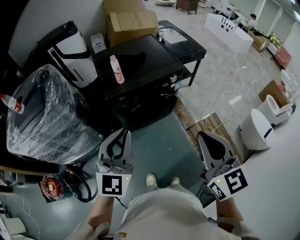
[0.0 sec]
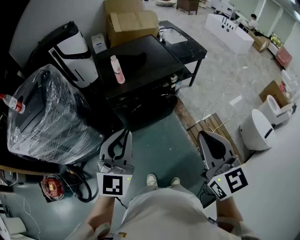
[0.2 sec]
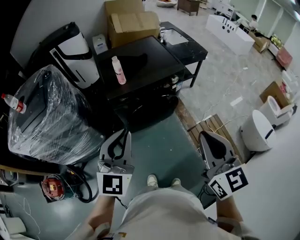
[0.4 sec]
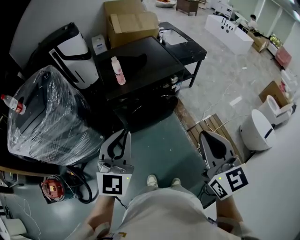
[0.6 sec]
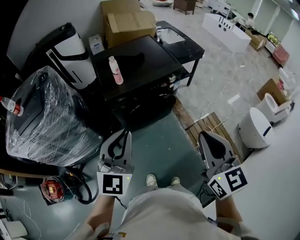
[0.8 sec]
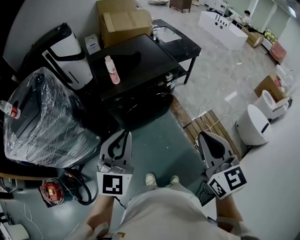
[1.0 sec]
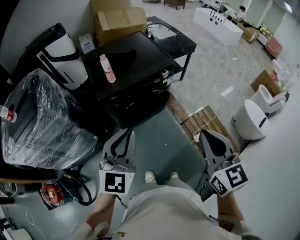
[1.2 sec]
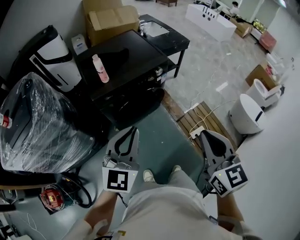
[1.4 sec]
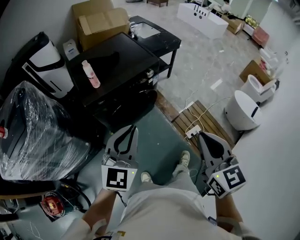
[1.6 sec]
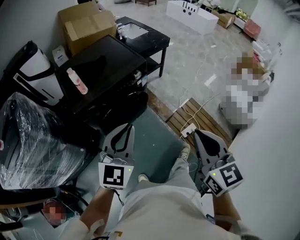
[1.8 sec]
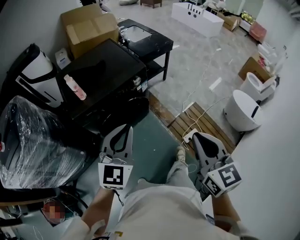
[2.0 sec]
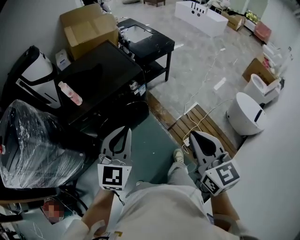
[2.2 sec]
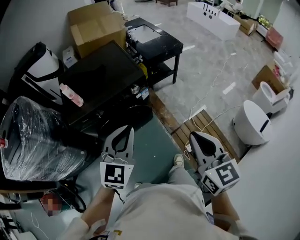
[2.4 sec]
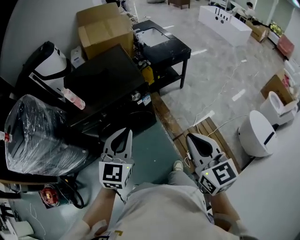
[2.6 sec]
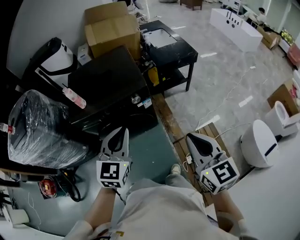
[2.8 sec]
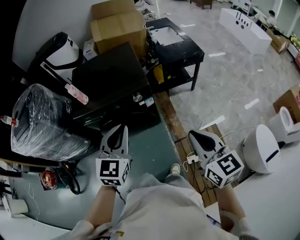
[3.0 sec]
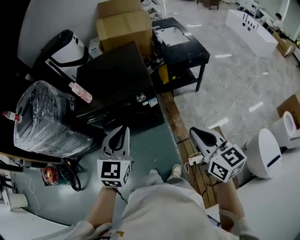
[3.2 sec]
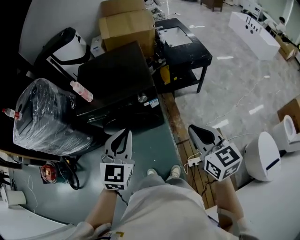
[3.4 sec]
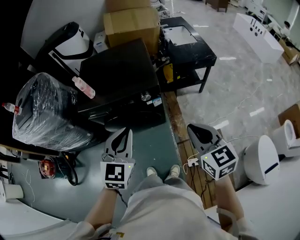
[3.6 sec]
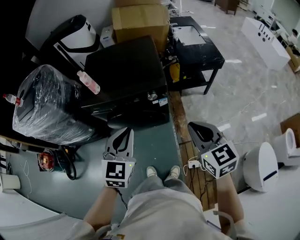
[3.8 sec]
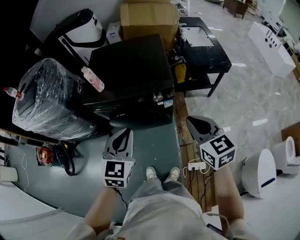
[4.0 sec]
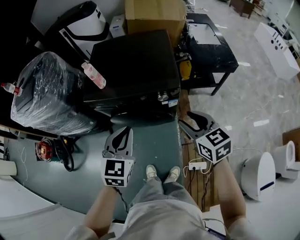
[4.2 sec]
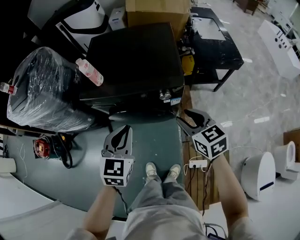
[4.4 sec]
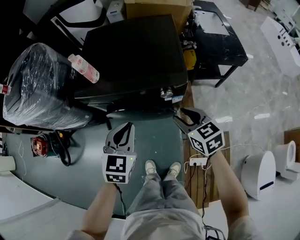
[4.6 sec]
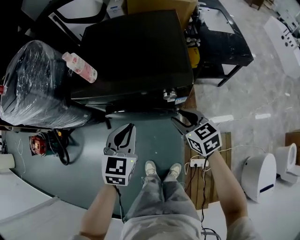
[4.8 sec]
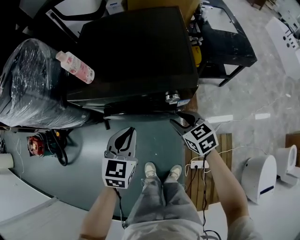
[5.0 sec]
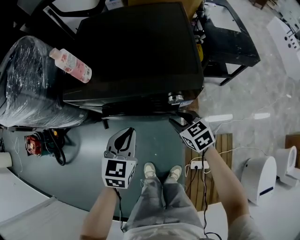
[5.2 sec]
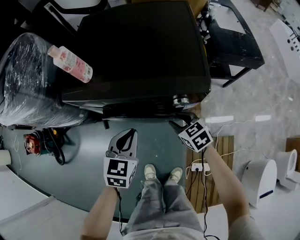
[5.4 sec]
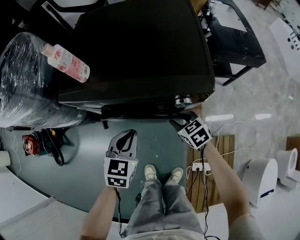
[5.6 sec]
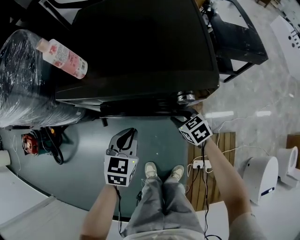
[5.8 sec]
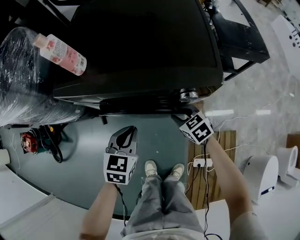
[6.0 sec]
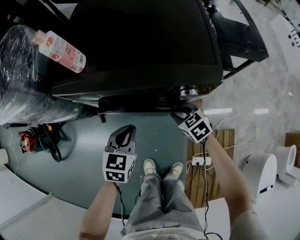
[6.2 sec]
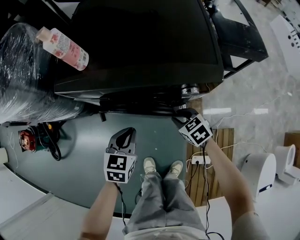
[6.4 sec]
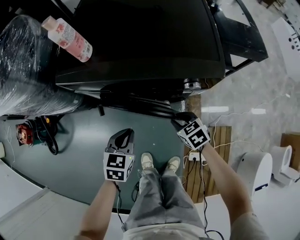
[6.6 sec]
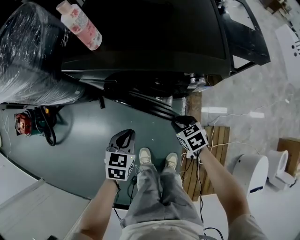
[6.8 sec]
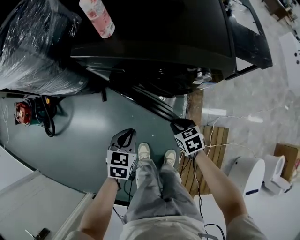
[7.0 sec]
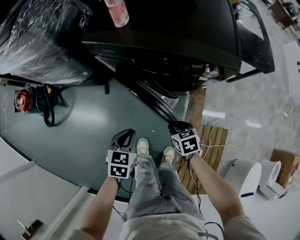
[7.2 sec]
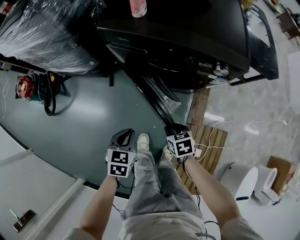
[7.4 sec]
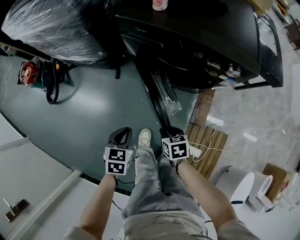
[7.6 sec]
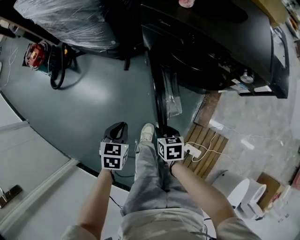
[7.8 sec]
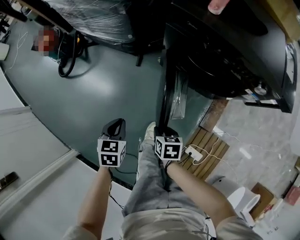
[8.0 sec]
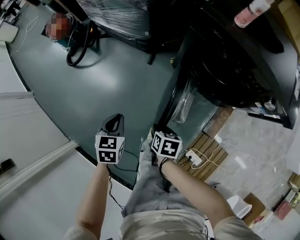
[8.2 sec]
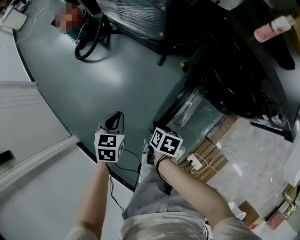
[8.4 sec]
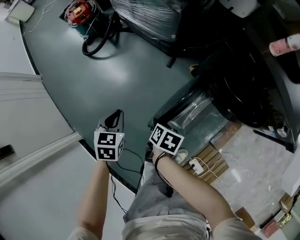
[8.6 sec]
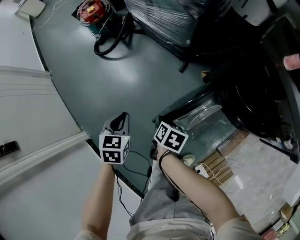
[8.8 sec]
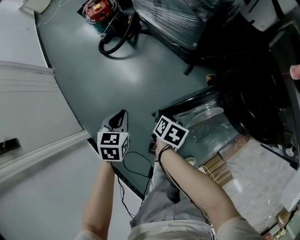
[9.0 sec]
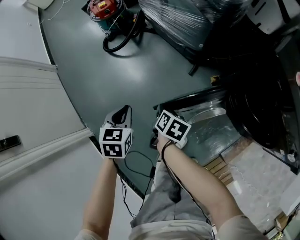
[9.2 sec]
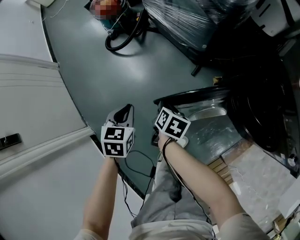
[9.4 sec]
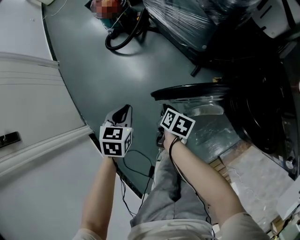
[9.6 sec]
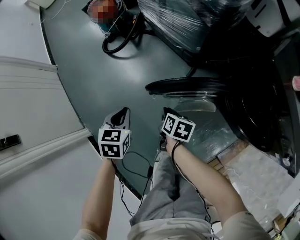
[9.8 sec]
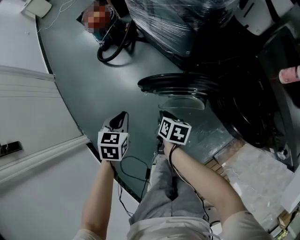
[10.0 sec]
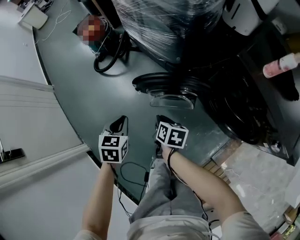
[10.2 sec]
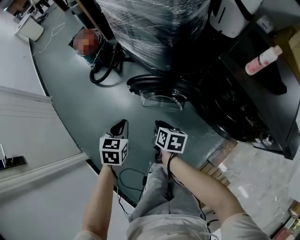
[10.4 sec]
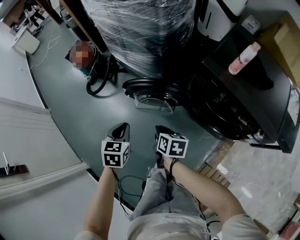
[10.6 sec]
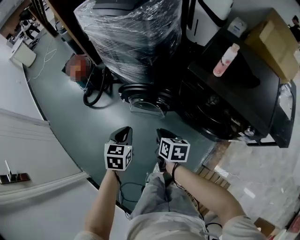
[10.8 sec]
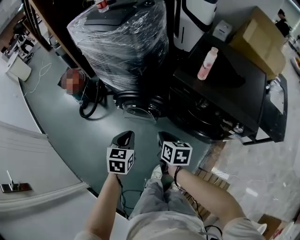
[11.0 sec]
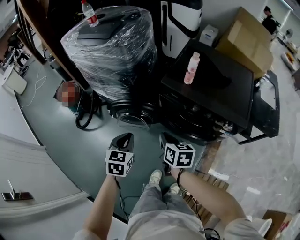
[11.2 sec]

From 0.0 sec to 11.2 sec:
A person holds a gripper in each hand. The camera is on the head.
From 0.0 sec to 1.6 sec: Both grippers move to the right, approximately 5 cm.
From 1.6 sec to 3.2 sec: The left gripper moves some 30 cm, and changes its angle by approximately 30 degrees. The right gripper moves some 40 cm, and swivels about 40 degrees.
From 3.2 sec to 4.8 sec: The left gripper moves downward and forward, about 25 cm, while the right gripper travels forward, downward and to the left by about 40 cm, rotates roughly 30 degrees, and opens.
From 4.8 sec to 6.4 sec: Both grippers move downward, approximately 20 cm. The right gripper rotates about 20 degrees.
From 6.4 sec to 8.0 sec: Both grippers are carried to the left and backward, roughly 40 cm. The left gripper turns by approximately 40 degrees. Meanwhile the right gripper turns by some 20 degrees.
From 8.0 sec to 9.6 sec: The right gripper is displaced forward and to the left by roughly 30 cm; the left gripper moves to the left and forward, about 25 cm, and rotates some 30 degrees.
From 9.6 sec to 11.2 sec: The left gripper moves about 40 cm, and swivels some 30 degrees. The right gripper travels upward by approximately 35 cm, and swivels approximately 30 degrees.

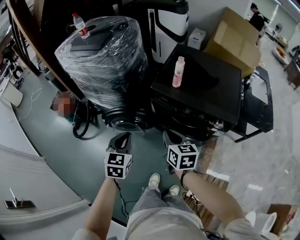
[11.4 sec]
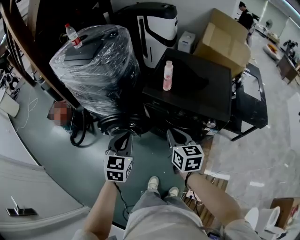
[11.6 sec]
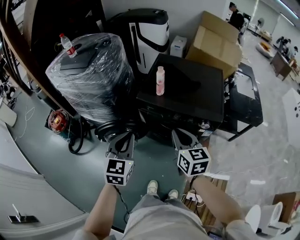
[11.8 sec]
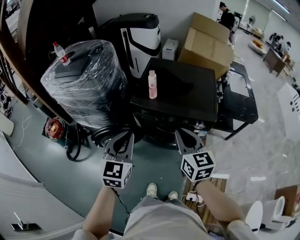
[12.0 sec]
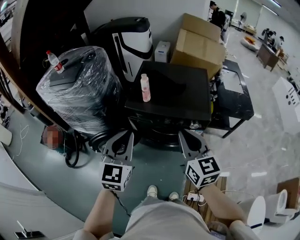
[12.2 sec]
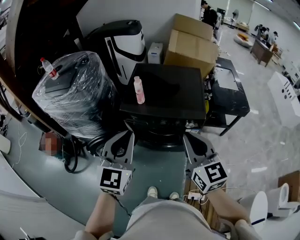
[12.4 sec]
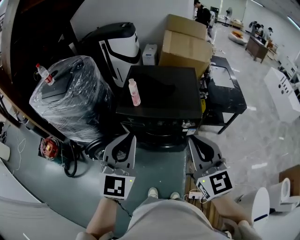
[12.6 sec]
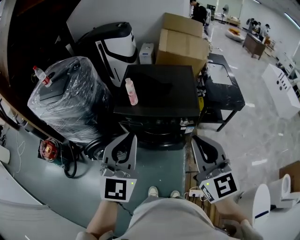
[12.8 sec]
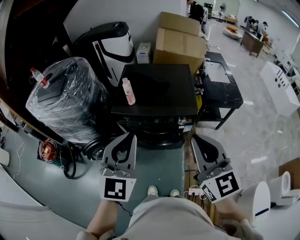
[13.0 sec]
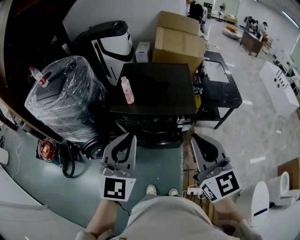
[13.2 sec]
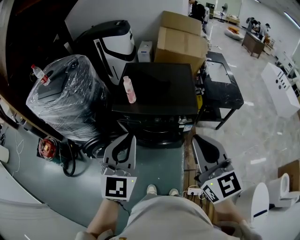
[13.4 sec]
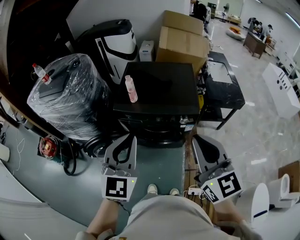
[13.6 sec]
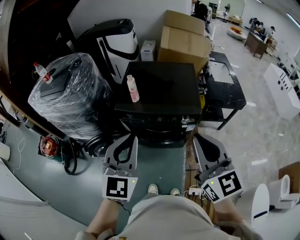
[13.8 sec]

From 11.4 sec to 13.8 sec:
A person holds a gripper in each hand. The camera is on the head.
From 11.4 sec to 12.6 sec: The left gripper is displaced upward and to the right by some 30 cm, and points its fingers approximately 30 degrees further upward. The right gripper moves upward, to the right and backward, roughly 35 cm, and swivels roughly 40 degrees.
From 12.6 sec to 13.8 sec: The grippers make only small movements.

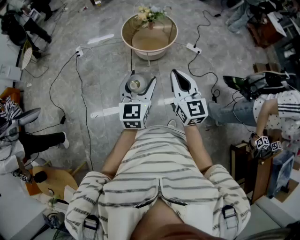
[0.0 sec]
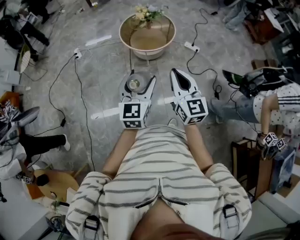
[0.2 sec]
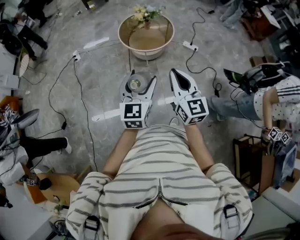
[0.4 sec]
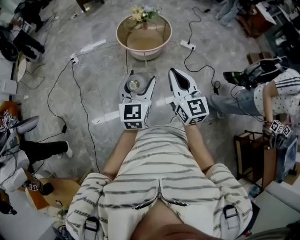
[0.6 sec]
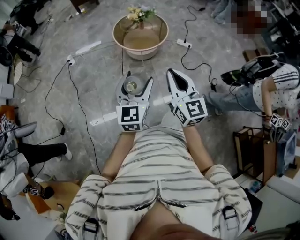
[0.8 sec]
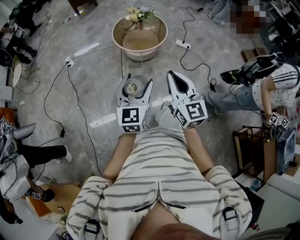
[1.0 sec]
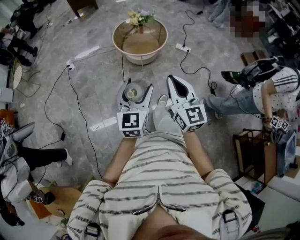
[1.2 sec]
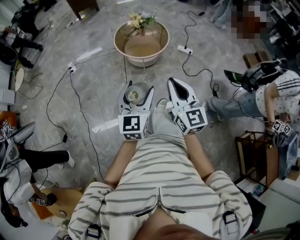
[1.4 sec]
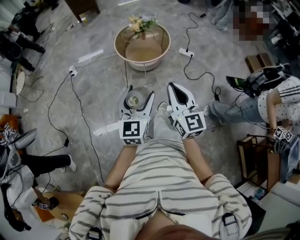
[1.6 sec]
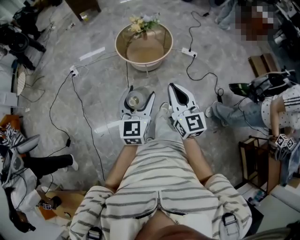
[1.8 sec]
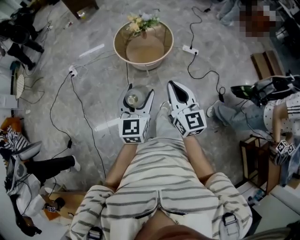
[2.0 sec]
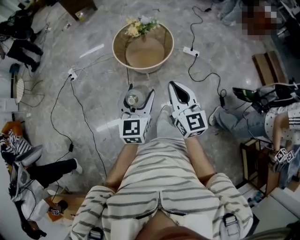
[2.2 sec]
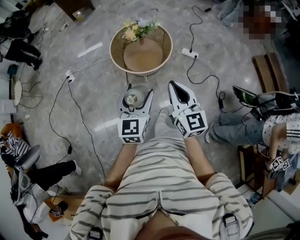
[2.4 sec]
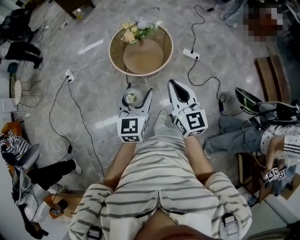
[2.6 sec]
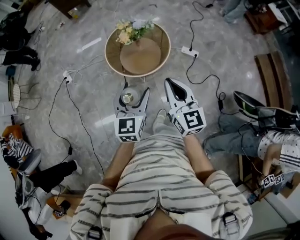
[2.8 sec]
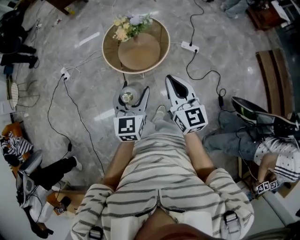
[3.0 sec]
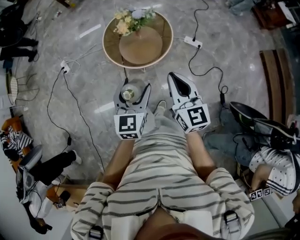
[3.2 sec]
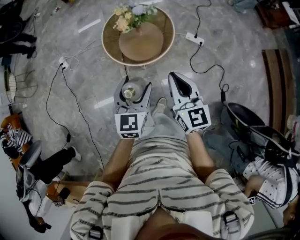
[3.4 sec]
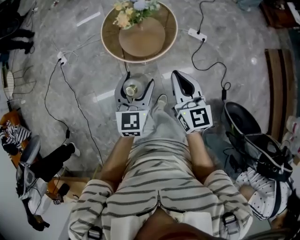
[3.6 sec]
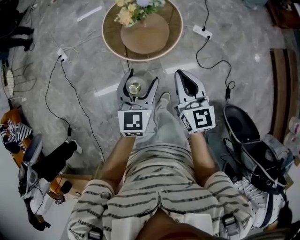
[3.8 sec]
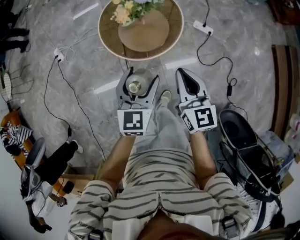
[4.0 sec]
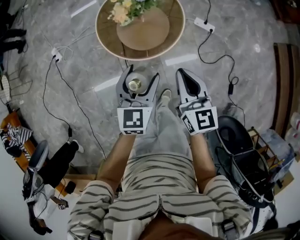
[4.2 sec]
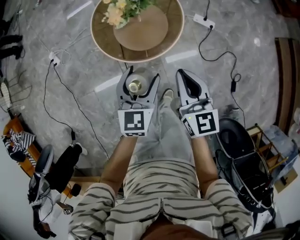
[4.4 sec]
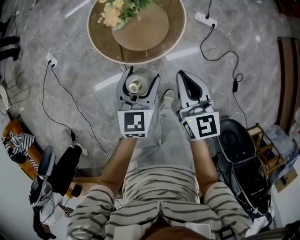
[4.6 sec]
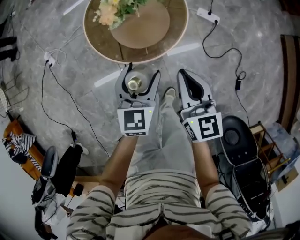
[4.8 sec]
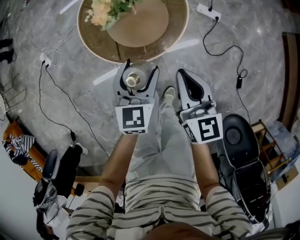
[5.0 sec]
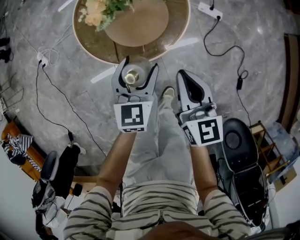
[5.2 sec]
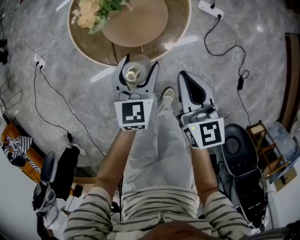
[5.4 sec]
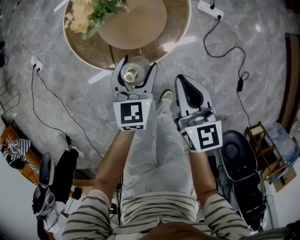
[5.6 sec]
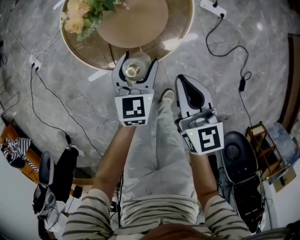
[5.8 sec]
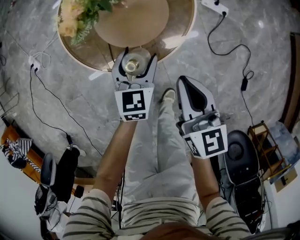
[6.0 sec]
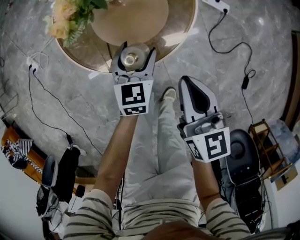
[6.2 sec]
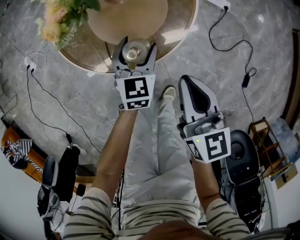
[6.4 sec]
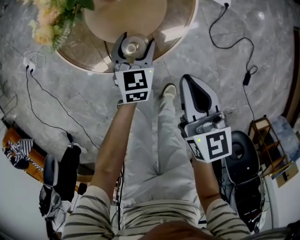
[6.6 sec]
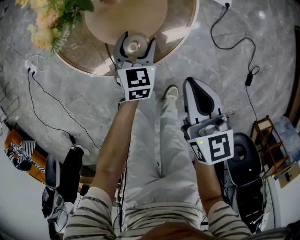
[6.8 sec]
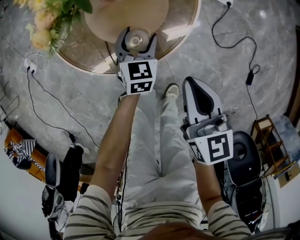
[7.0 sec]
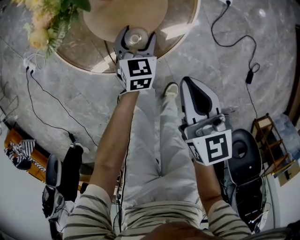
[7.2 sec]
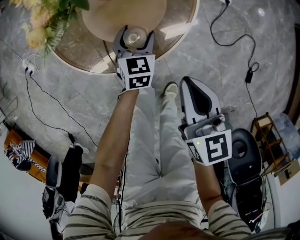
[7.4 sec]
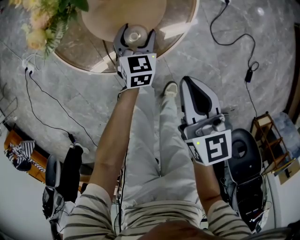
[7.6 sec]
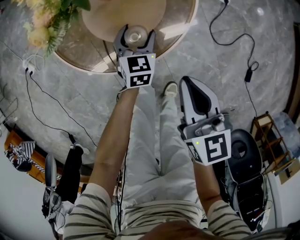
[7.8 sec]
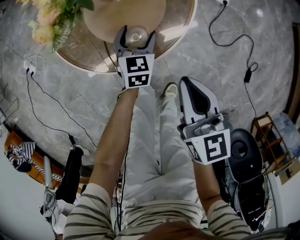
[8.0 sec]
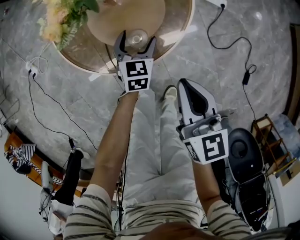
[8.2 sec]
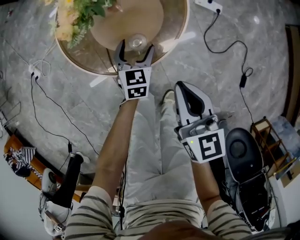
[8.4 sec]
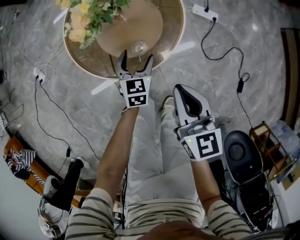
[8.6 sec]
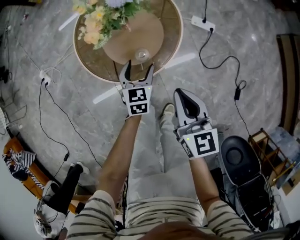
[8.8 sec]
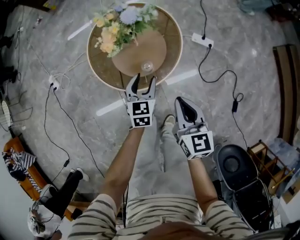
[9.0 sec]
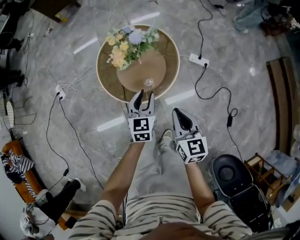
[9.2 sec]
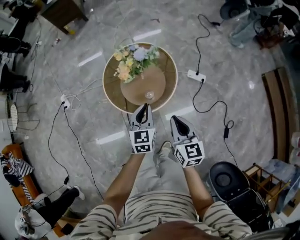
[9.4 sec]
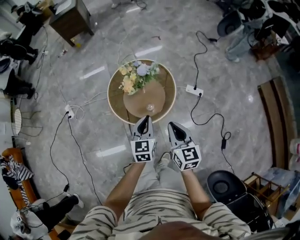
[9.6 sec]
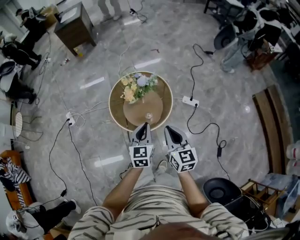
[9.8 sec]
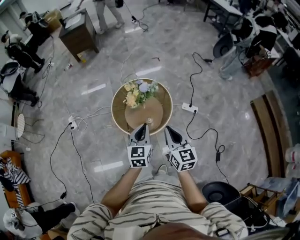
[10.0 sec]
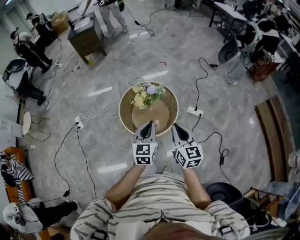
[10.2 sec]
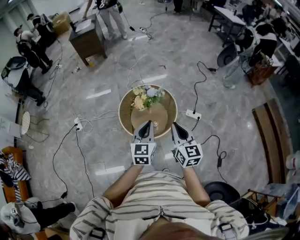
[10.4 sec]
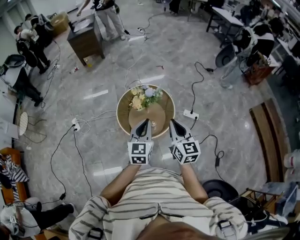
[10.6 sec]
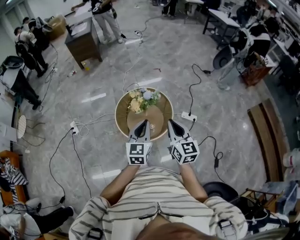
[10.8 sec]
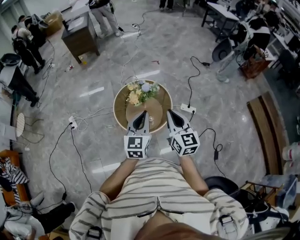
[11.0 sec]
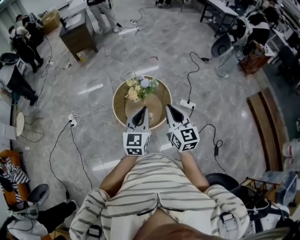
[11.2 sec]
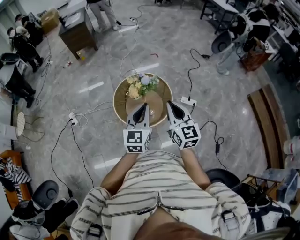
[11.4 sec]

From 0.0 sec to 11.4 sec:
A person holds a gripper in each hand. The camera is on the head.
From 0.0 sec to 1.4 sec: The two grippers go some 5 cm to the left.
From 1.4 sec to 2.8 sec: Both grippers travel together forward, roughly 30 cm.
From 2.8 sec to 4.2 sec: The grippers both shift downward and forward by some 20 cm.
From 4.2 sec to 5.6 sec: The right gripper travels downward by approximately 20 cm, while the left gripper is displaced downward and forward by some 25 cm.
From 5.6 sec to 7.2 sec: The left gripper shifts about 20 cm downward; the right gripper is displaced downward by approximately 5 cm.
From 7.2 sec to 8.6 sec: The grippers both shift upward by about 10 cm.
From 8.6 sec to 10.0 sec: The two grippers go some 40 cm upward. The left gripper rotates some 20 degrees, and closes up.
From 10.0 sec to 11.4 sec: Both grippers travel together upward, roughly 10 cm.
